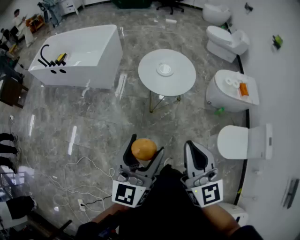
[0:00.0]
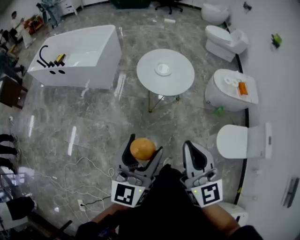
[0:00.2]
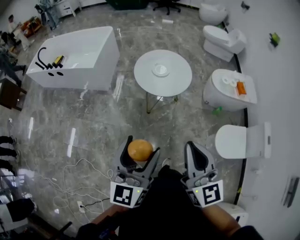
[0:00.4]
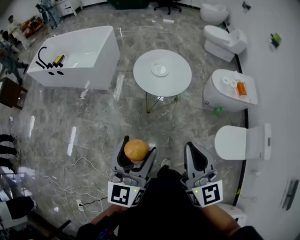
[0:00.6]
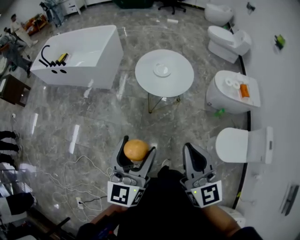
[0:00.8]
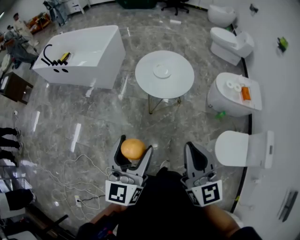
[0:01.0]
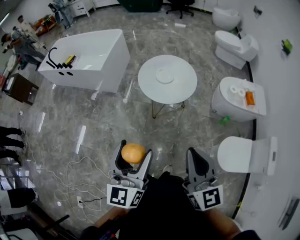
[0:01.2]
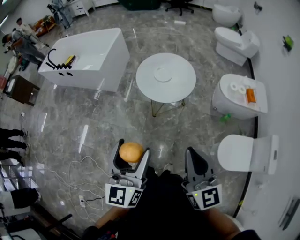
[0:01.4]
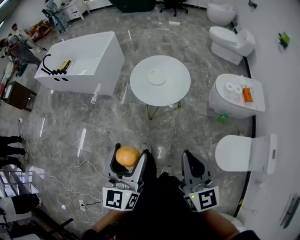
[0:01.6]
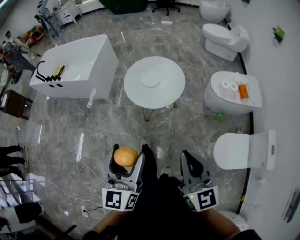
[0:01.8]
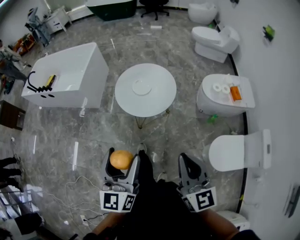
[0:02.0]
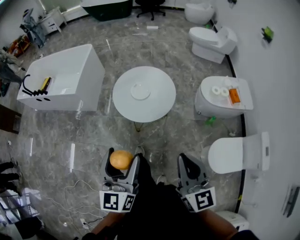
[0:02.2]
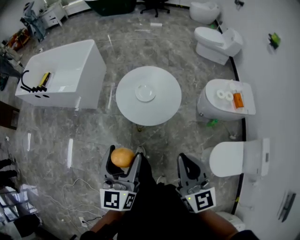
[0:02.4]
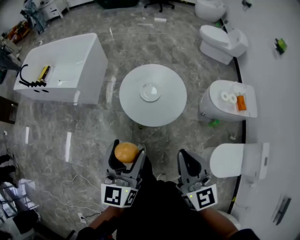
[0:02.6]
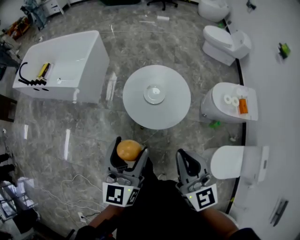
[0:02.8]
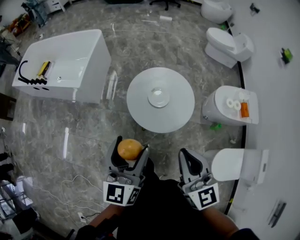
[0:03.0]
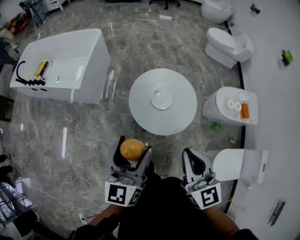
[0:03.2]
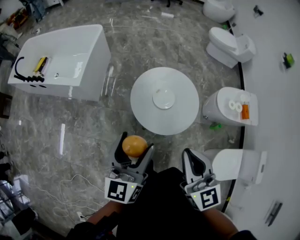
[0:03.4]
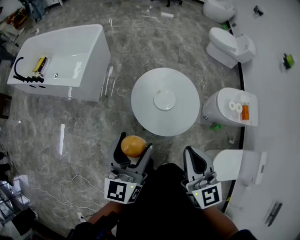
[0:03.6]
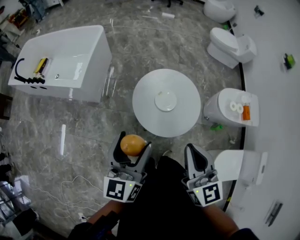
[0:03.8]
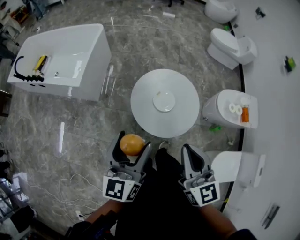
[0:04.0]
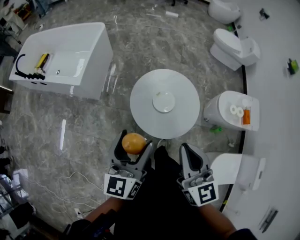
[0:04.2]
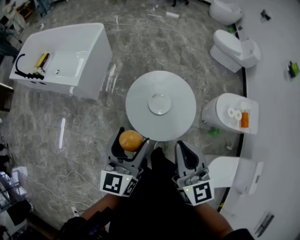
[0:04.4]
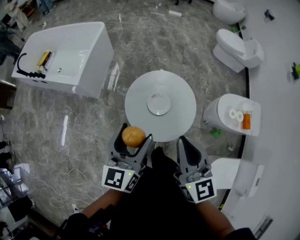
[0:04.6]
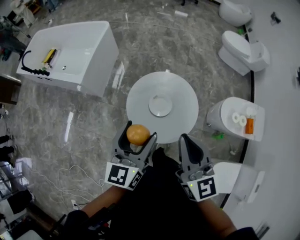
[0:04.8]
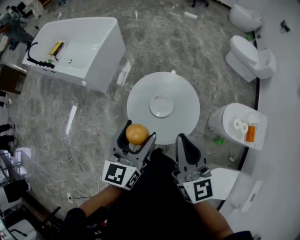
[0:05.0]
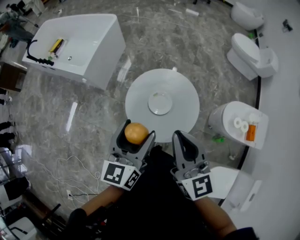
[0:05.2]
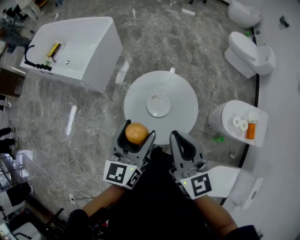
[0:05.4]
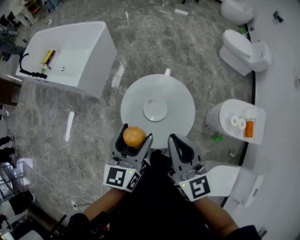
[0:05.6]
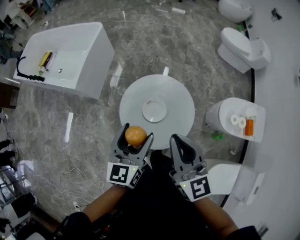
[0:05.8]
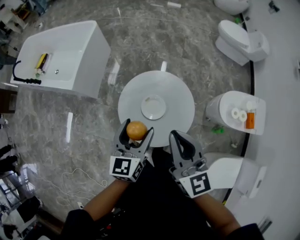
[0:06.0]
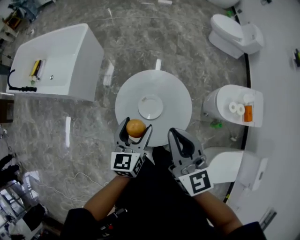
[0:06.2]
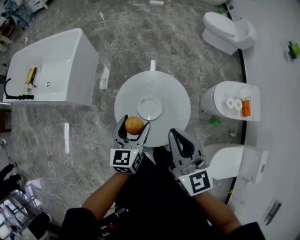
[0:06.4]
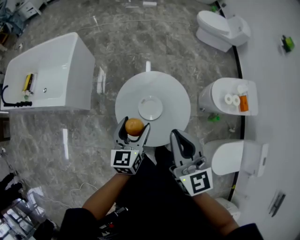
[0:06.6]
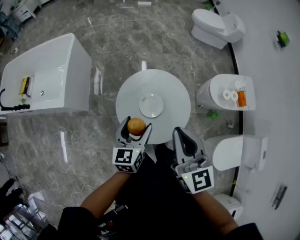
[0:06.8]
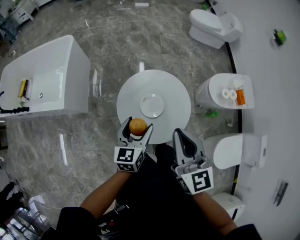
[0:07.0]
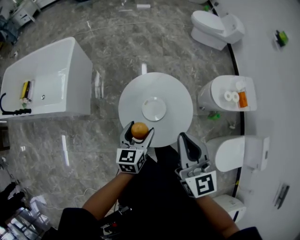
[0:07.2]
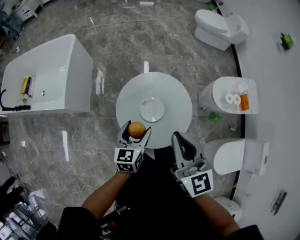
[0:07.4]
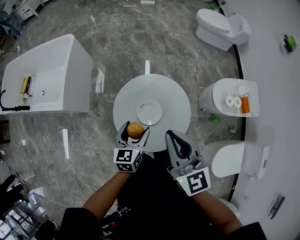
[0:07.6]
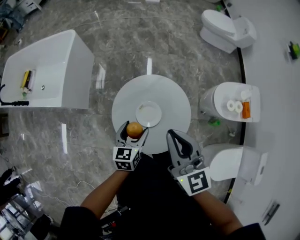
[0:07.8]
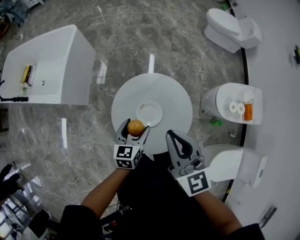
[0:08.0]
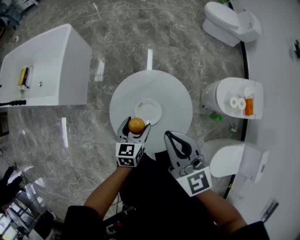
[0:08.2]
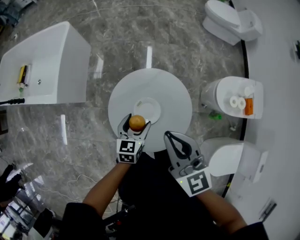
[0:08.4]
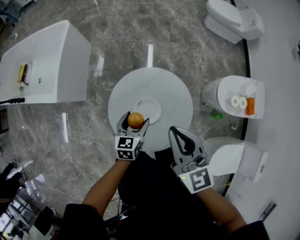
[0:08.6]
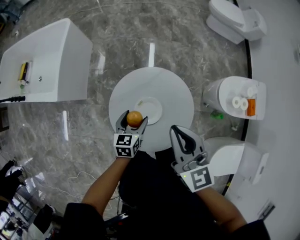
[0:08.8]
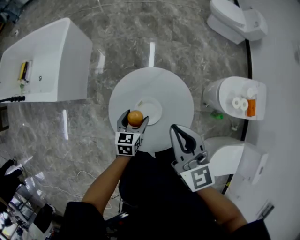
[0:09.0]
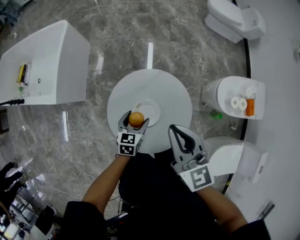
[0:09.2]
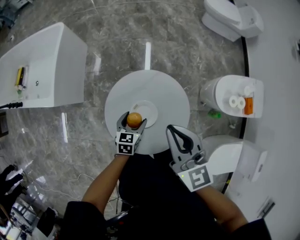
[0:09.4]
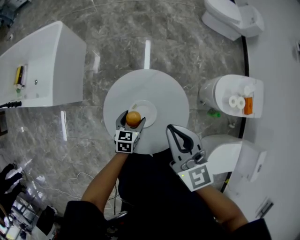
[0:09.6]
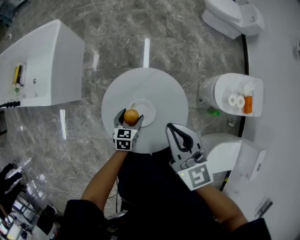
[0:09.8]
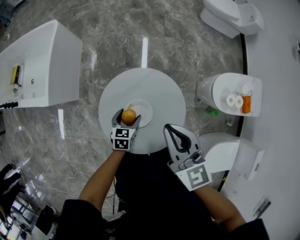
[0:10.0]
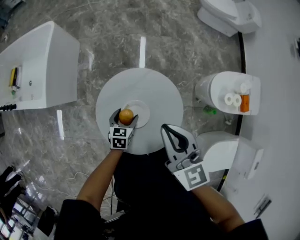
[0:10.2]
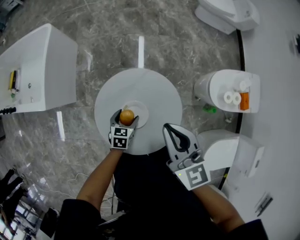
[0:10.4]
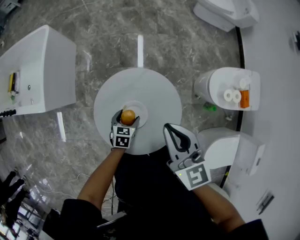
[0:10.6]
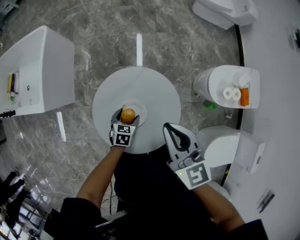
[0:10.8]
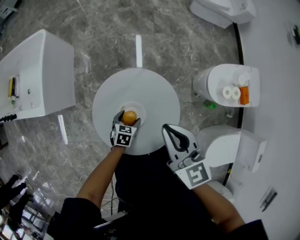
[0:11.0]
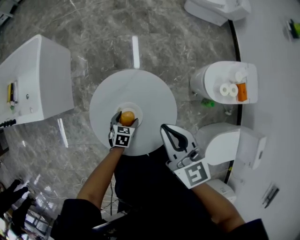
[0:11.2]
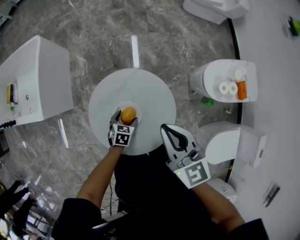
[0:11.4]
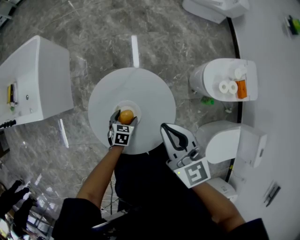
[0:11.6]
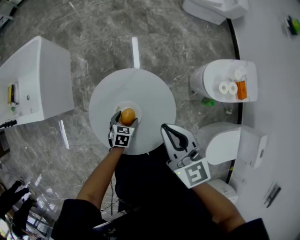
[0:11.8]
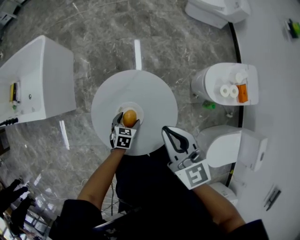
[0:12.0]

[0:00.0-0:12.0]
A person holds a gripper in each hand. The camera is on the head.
0:00.0 to 0:01.6: The right gripper shifts about 15 cm to the right, while the left gripper travels to the right by roughly 5 cm.
0:01.6 to 0:03.0: Both grippers travel together forward, roughly 25 cm.
0:03.0 to 0:04.4: The grippers both shift forward by some 10 cm.
0:04.4 to 0:06.0: The right gripper shifts some 10 cm forward and to the right. Meanwhile the left gripper shifts about 15 cm forward, downward and to the right.
0:06.0 to 0:07.6: The left gripper shifts some 10 cm downward.
0:07.6 to 0:09.0: The right gripper heads forward and downward, covering approximately 10 cm, while the left gripper shifts approximately 10 cm downward and forward.
0:09.0 to 0:10.4: The left gripper heads downward, covering about 10 cm; the right gripper ends up some 5 cm from where it was.
0:10.4 to 0:12.0: The grippers stay close to where they were, moving slightly.

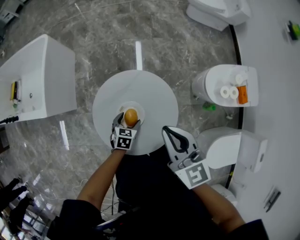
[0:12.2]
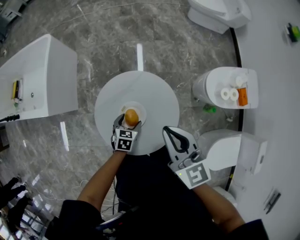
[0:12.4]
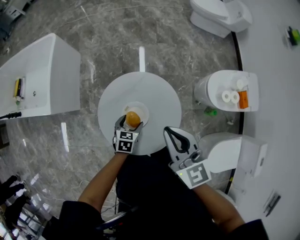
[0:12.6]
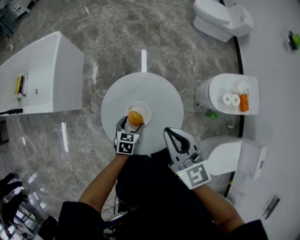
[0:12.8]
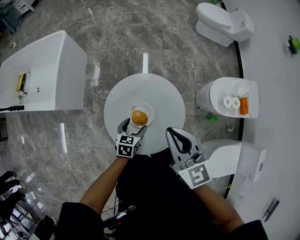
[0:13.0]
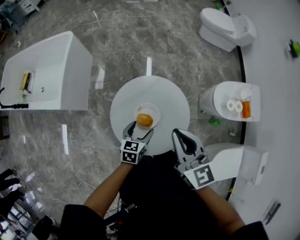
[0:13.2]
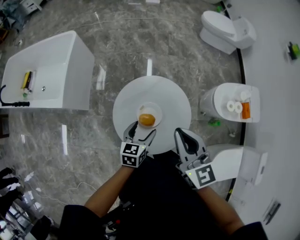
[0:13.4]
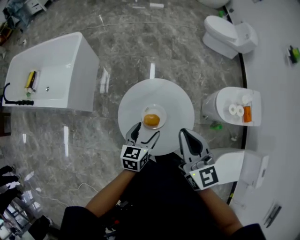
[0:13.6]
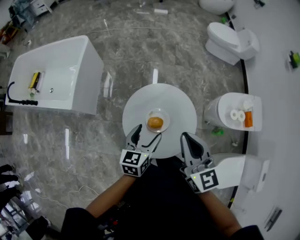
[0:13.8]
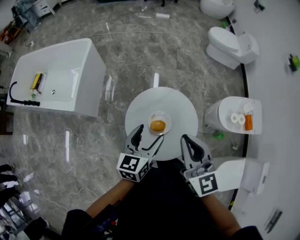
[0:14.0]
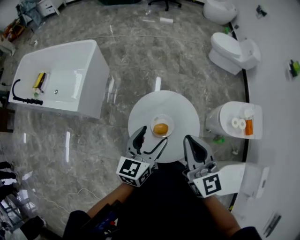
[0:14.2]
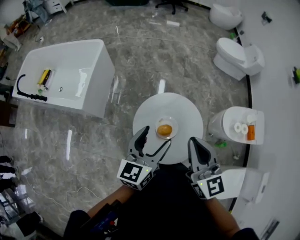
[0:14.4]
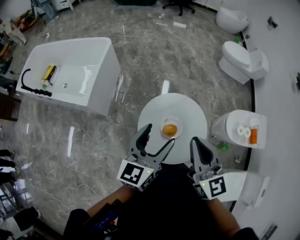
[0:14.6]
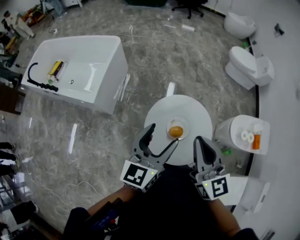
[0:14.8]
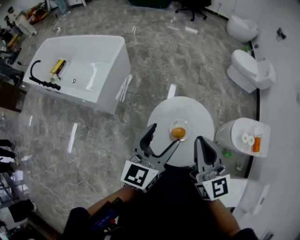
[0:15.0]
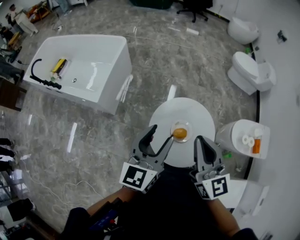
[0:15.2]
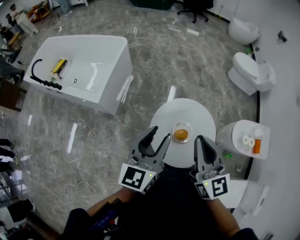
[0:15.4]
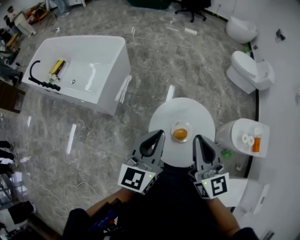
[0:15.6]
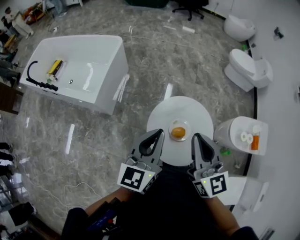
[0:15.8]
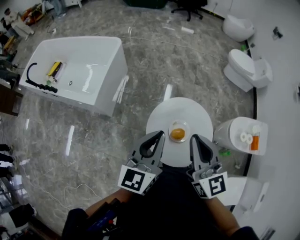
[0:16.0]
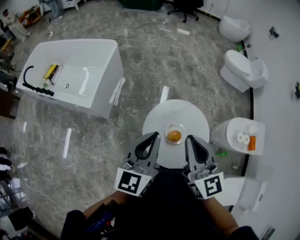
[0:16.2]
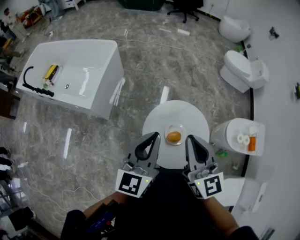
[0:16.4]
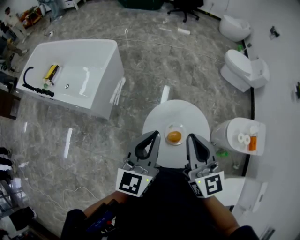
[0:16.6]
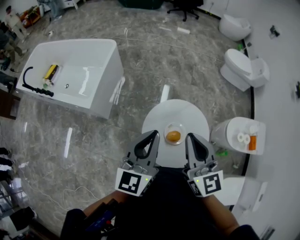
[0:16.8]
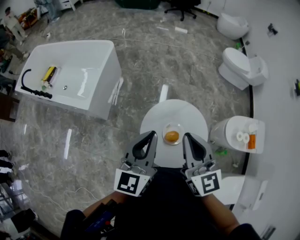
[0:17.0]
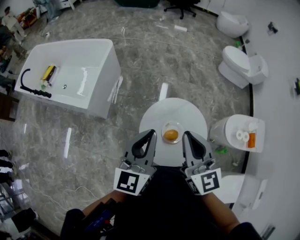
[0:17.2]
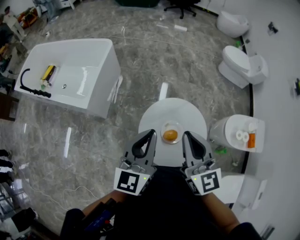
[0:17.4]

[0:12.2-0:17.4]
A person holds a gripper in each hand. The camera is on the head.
0:12.2 to 0:14.0: The left gripper heads upward, covering some 30 cm, and points its fingers approximately 40 degrees further upward, while the right gripper shifts roughly 15 cm upward, to the left and backward.
0:14.0 to 0:15.6: The left gripper is displaced upward and to the left by some 15 cm, and closes; the right gripper heads to the left, covering about 10 cm.
0:15.6 to 0:17.4: There are only small adjustments of the grippers.

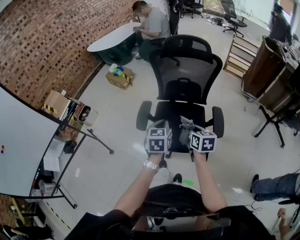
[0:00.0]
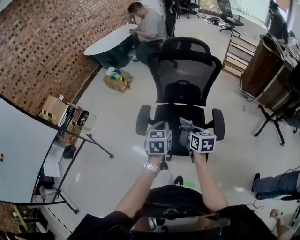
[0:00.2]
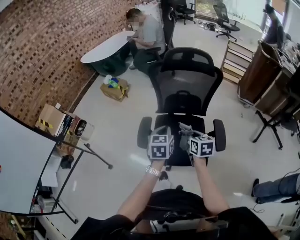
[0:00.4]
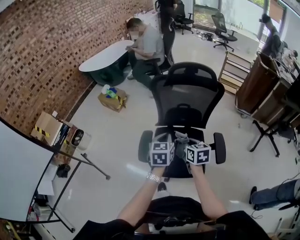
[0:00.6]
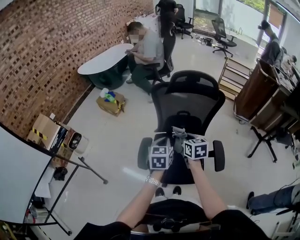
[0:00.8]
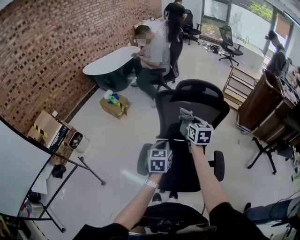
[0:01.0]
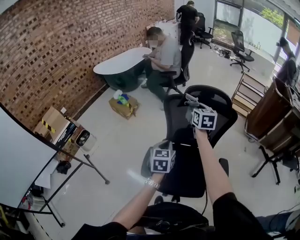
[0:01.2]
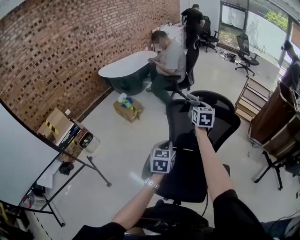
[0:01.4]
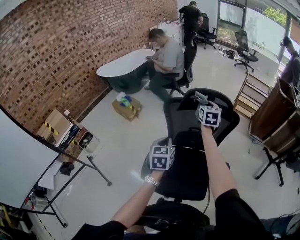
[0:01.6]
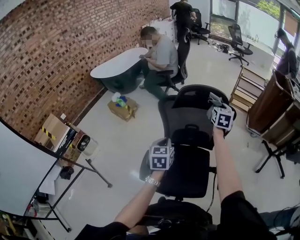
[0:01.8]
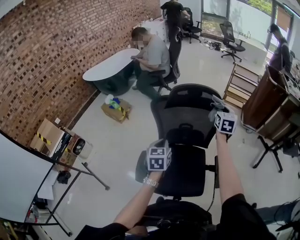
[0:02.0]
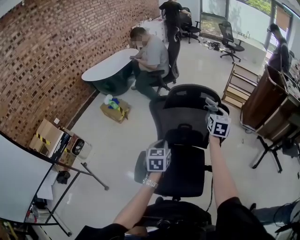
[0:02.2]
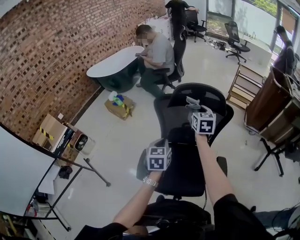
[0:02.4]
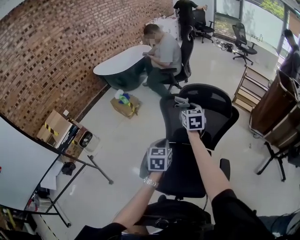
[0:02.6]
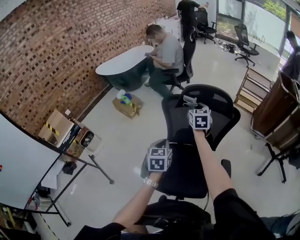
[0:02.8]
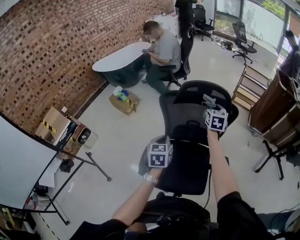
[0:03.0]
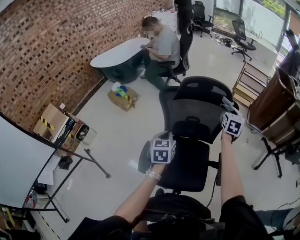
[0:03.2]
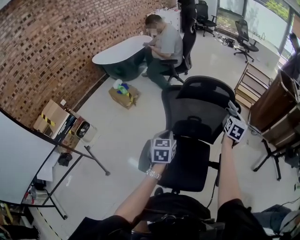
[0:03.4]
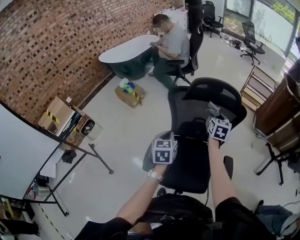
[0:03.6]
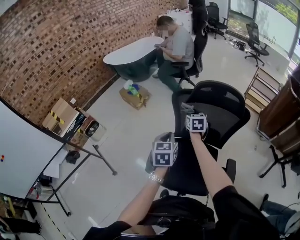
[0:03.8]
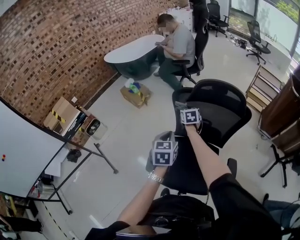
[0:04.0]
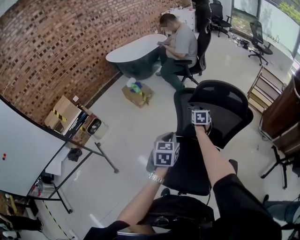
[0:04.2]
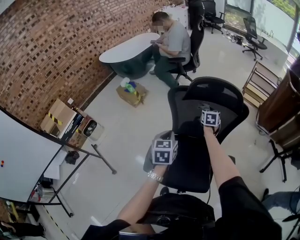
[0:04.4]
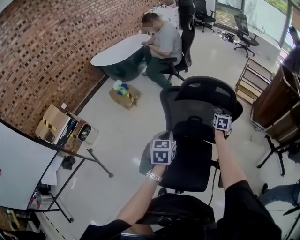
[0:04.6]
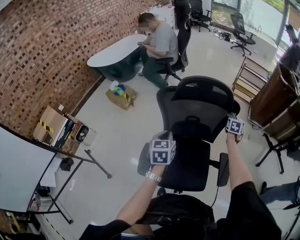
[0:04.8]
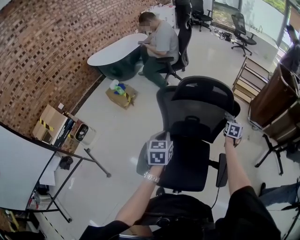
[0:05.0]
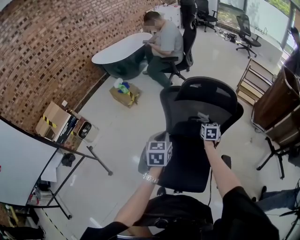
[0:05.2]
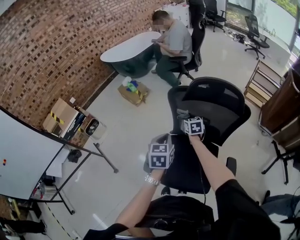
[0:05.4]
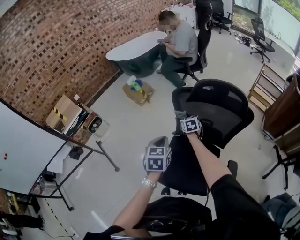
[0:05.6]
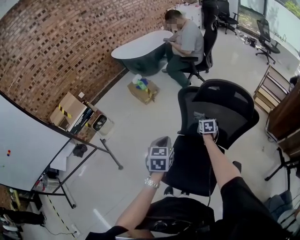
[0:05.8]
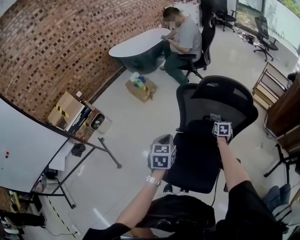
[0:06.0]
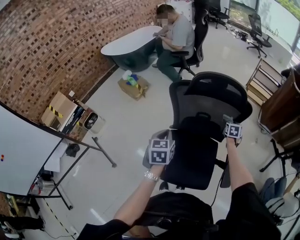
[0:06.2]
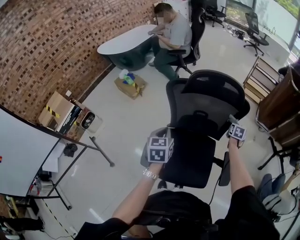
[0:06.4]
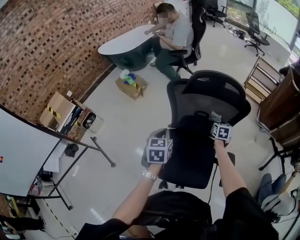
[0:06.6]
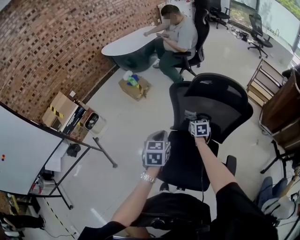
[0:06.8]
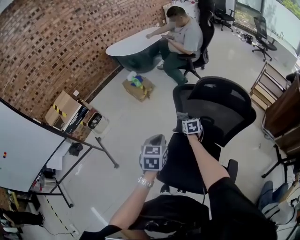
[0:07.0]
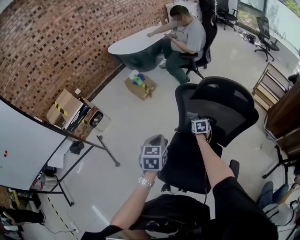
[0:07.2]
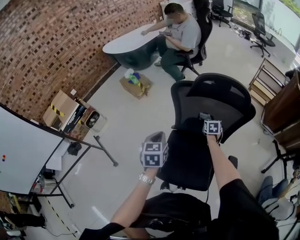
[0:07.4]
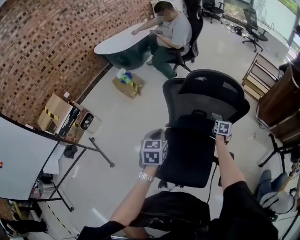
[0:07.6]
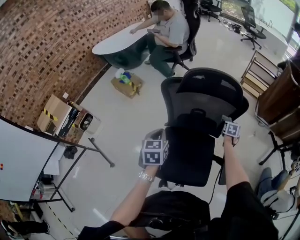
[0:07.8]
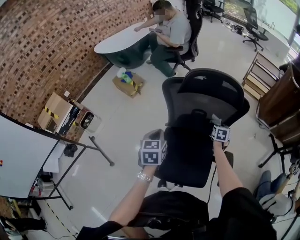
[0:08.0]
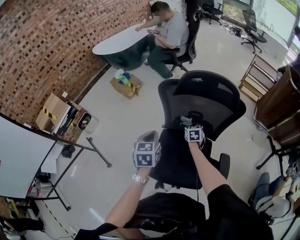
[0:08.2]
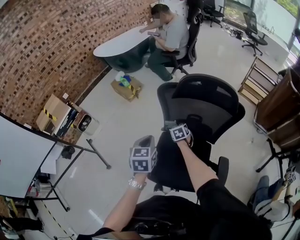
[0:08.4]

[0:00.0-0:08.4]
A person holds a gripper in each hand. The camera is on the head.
0:00.0 to 0:01.4: The left gripper goes about 20 cm forward. Meanwhile the right gripper goes approximately 50 cm forward and upward, and changes its angle by some 30 degrees.
0:01.4 to 0:02.8: The right gripper moves left and right over roughly 25 cm, changing direction 2 times.
0:02.8 to 0:04.2: The right gripper moves left and right over approximately 35 cm, changing direction 2 times.
0:05.6 to 0:07.0: The right gripper reaches about 40 cm to the right, then returns.
0:07.0 to 0:08.4: The right gripper shifts some 5 cm downward.
